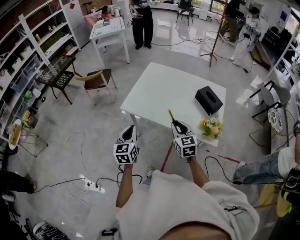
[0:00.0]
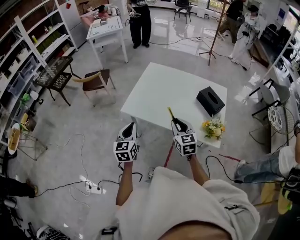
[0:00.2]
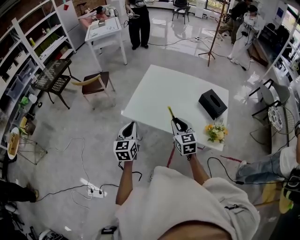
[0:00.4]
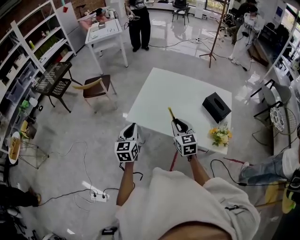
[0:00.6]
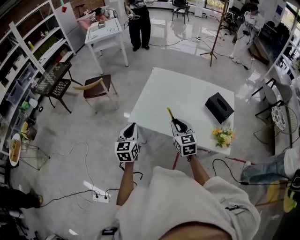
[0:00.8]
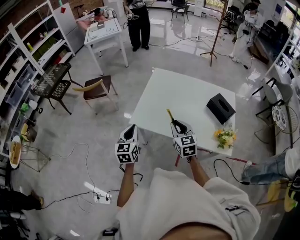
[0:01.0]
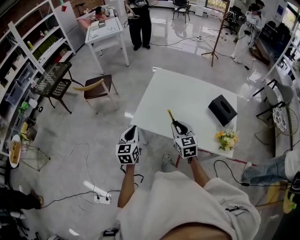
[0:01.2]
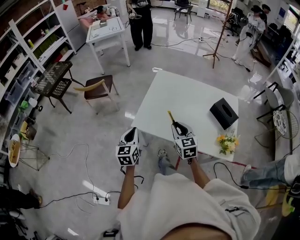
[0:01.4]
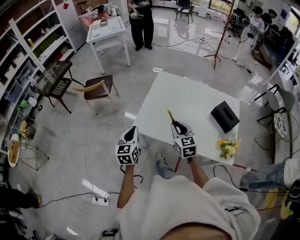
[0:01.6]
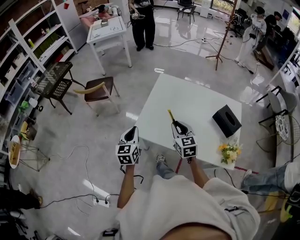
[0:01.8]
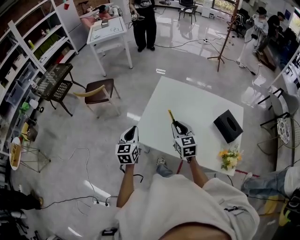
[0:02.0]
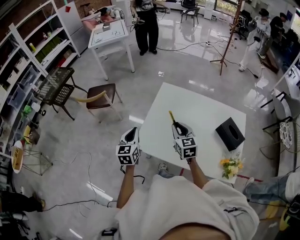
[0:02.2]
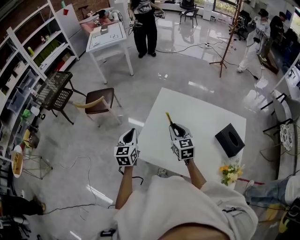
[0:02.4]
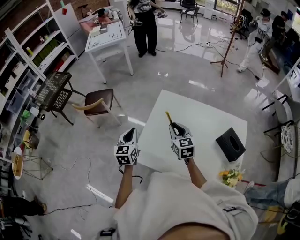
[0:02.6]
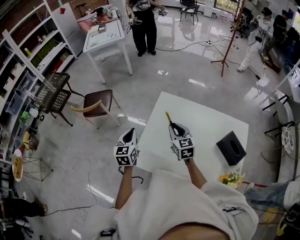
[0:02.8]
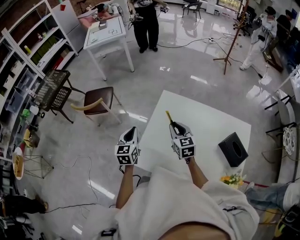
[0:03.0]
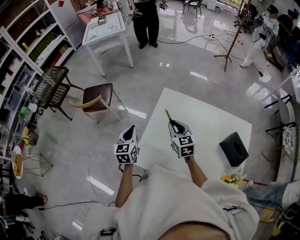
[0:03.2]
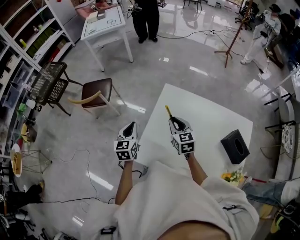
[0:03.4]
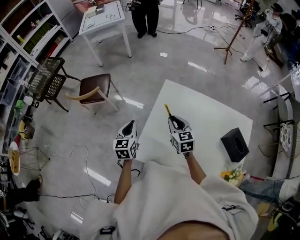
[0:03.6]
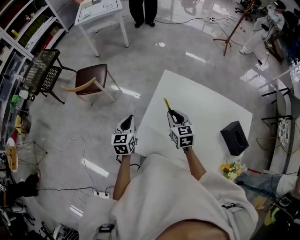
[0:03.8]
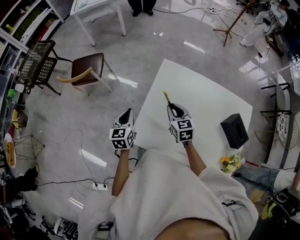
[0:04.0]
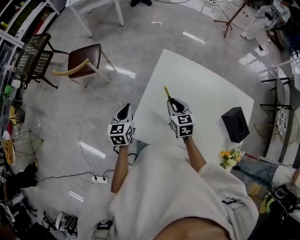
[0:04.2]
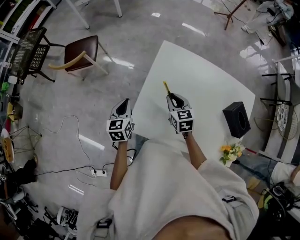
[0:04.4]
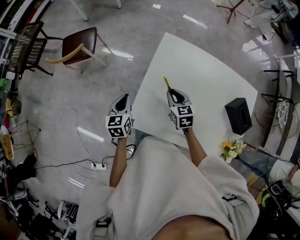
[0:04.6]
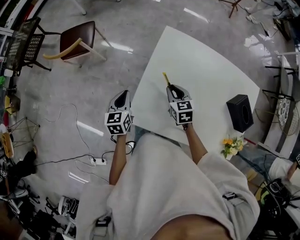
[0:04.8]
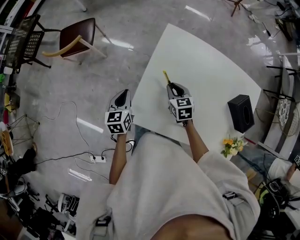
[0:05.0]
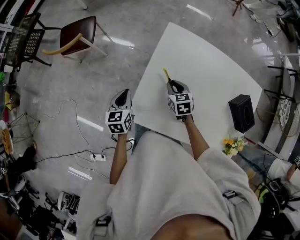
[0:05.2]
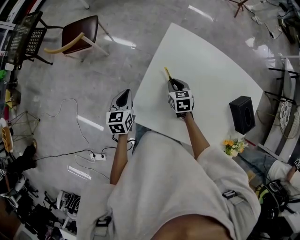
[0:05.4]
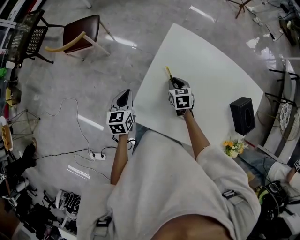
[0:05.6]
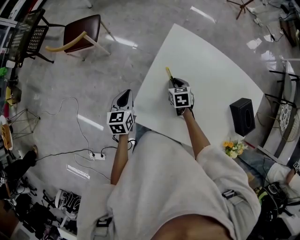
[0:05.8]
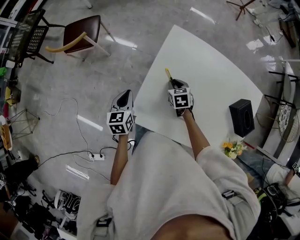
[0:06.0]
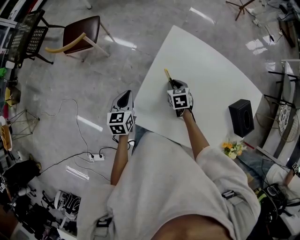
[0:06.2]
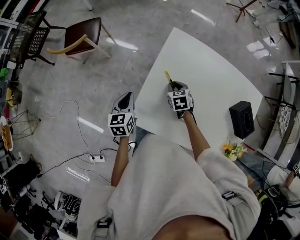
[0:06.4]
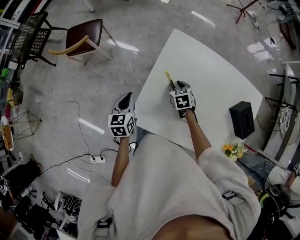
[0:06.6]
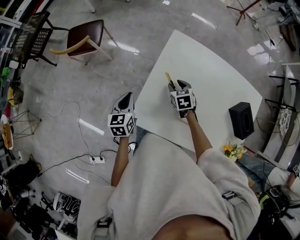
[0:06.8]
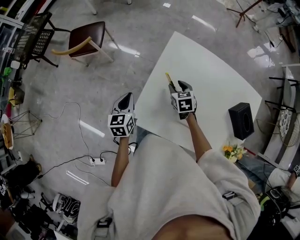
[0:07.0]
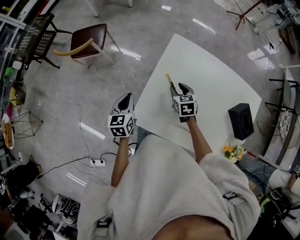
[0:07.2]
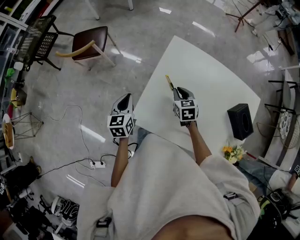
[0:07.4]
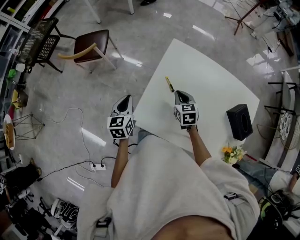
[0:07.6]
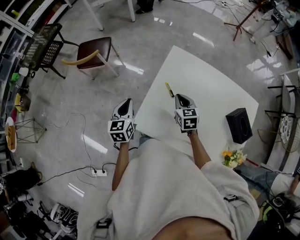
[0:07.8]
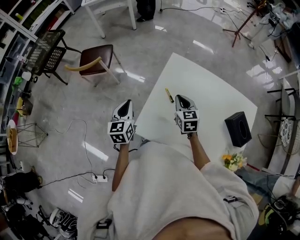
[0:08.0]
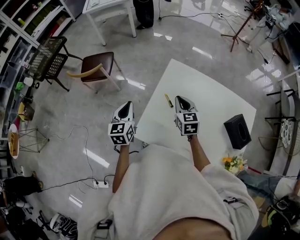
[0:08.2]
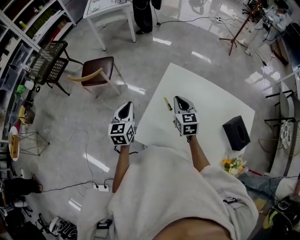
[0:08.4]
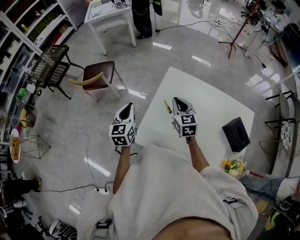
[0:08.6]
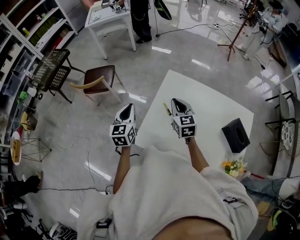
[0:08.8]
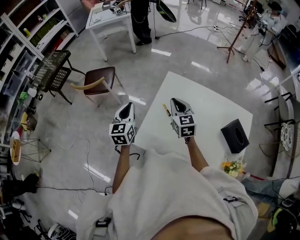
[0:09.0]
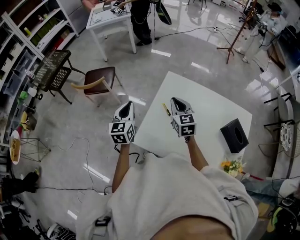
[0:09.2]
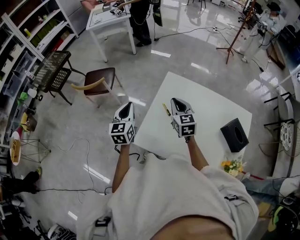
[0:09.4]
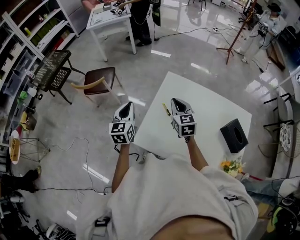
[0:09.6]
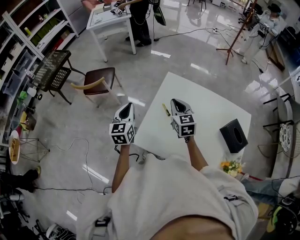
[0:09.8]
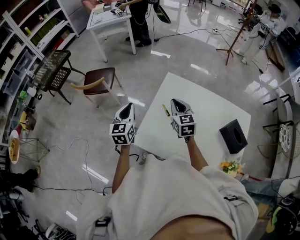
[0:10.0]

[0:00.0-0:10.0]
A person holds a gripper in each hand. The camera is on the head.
0.0 to 1.4 s: Both grippers travel together forward and to the left, approximately 15 cm.
1.4 to 2.8 s: The grippers both shift forward by roughly 25 cm.
2.8 to 4.2 s: Both grippers travel together downward, about 10 cm.
4.2 to 5.8 s: The left gripper ends up about 5 cm from where it was; the right gripper goes roughly 10 cm downward, and changes its angle by roughly 20 degrees.
5.8 to 7.2 s: The right gripper shifts roughly 5 cm upward, and opens its fingers.
7.2 to 8.6 s: Both grippers move upward, some 15 cm. The right gripper rotates about 20 degrees, and closes up.
8.6 to 10.0 s: There are only small adjustments of the grippers.

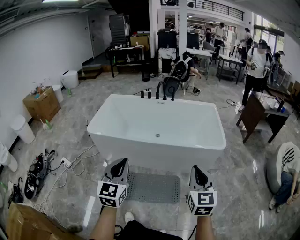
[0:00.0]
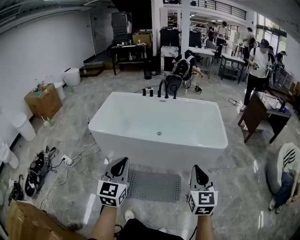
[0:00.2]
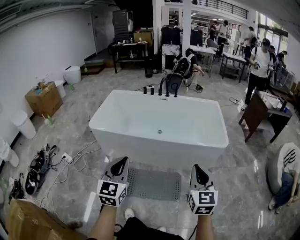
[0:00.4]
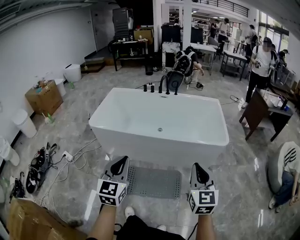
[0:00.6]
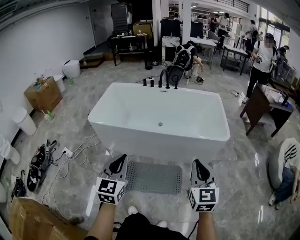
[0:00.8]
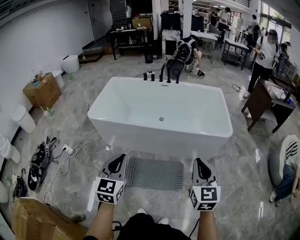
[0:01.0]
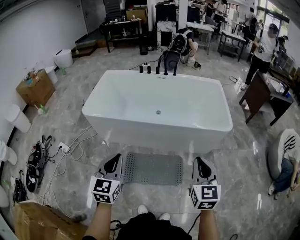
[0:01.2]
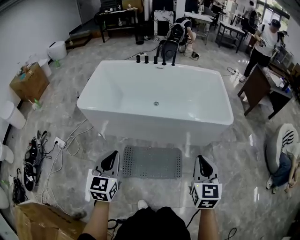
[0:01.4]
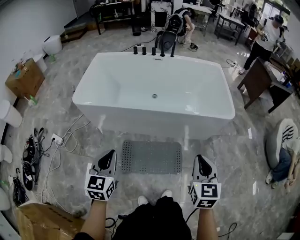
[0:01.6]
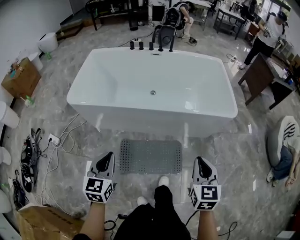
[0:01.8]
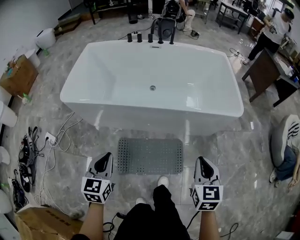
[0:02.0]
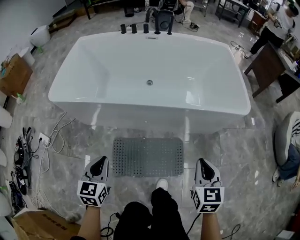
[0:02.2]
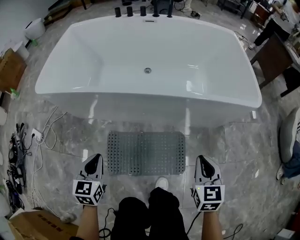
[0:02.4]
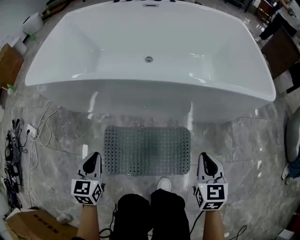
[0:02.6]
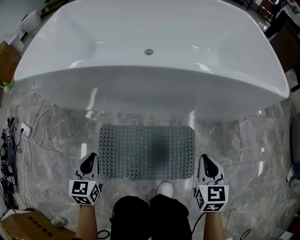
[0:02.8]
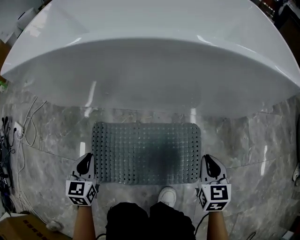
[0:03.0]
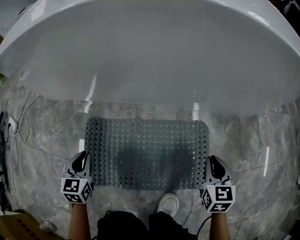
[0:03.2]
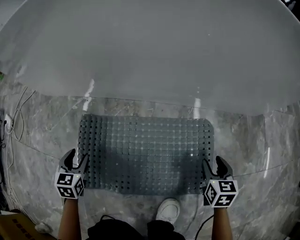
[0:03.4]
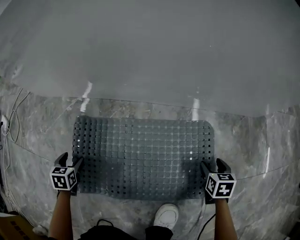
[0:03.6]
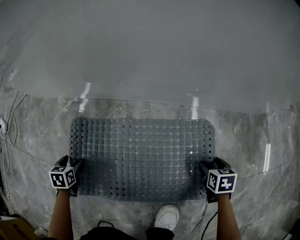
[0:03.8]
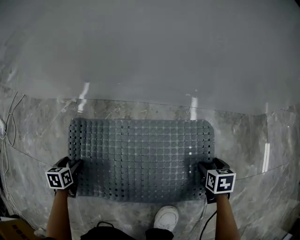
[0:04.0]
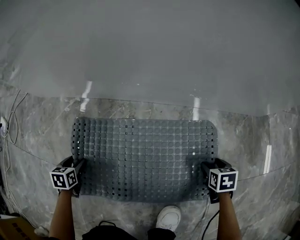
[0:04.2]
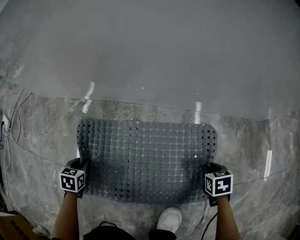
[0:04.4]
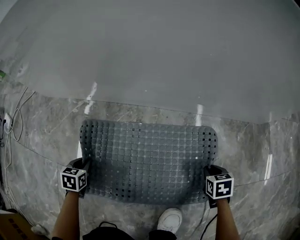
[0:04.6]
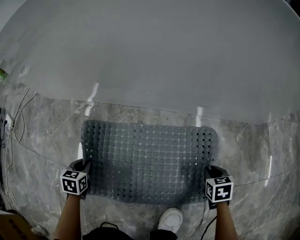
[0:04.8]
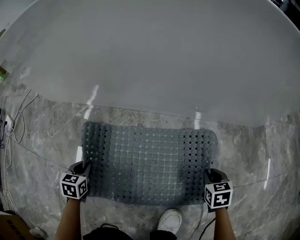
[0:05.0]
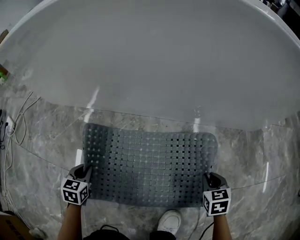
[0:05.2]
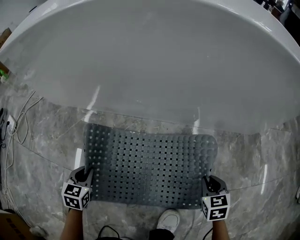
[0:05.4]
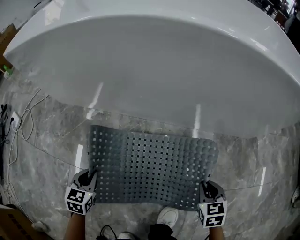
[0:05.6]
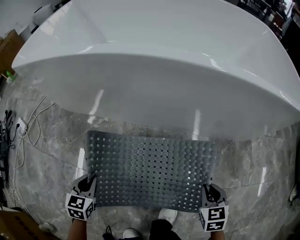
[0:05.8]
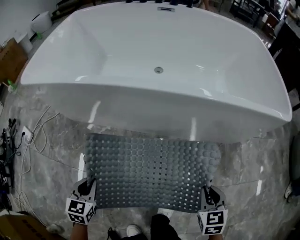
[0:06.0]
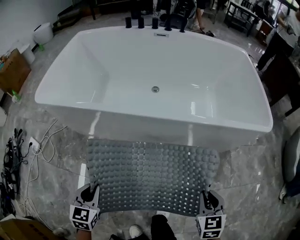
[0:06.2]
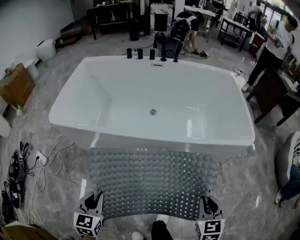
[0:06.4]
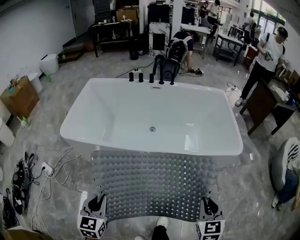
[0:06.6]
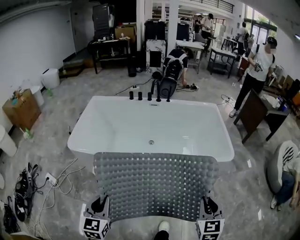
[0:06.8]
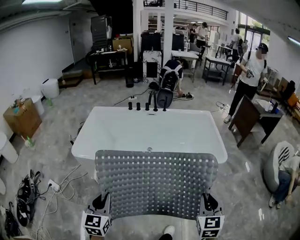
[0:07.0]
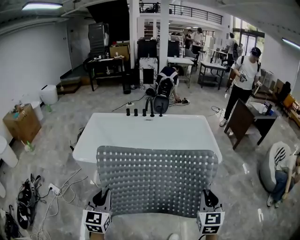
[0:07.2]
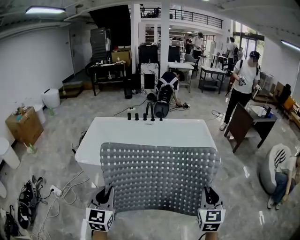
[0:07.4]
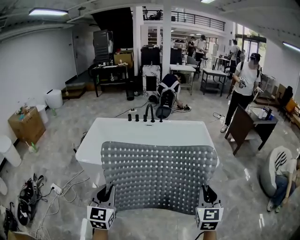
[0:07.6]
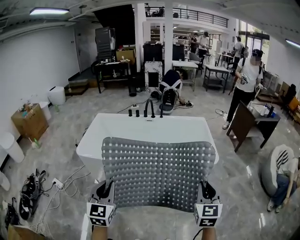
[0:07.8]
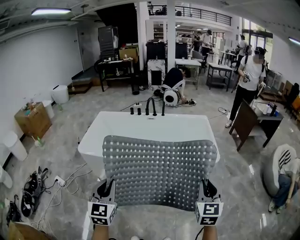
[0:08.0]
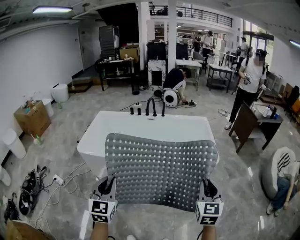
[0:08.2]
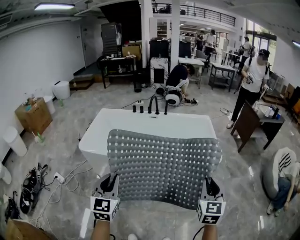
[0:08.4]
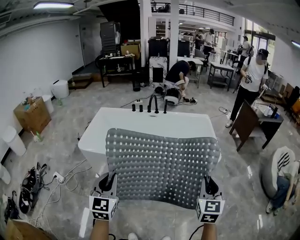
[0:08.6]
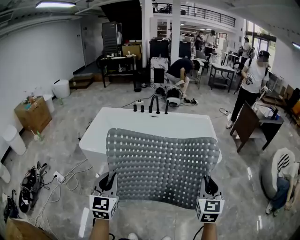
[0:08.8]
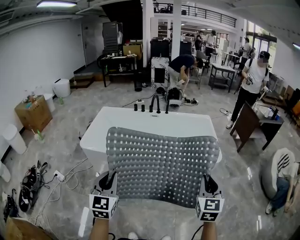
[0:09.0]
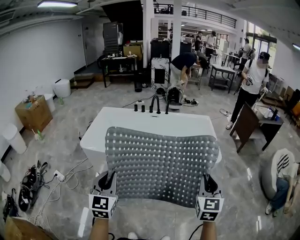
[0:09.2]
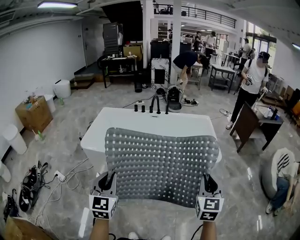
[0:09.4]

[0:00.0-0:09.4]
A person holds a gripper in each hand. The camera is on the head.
0.0 to 1.6 s: The left gripper moves downward and to the left, about 20 cm, while the right gripper shifts some 15 cm downward and forward.
1.6 to 3.2 s: The two grippers go some 70 cm downward. The left gripper turns by approximately 20 degrees.
3.2 to 4.8 s: Both grippers move downward, approximately 15 cm. The right gripper turns by about 30 degrees, and opens, then closes once more, while the left gripper rotates some 20 degrees, and opens and closes again.
4.8 to 6.2 s: Both grippers travel together upward, some 50 cm. The left gripper rotates some 20 degrees; the right gripper rotates some 30 degrees.
6.2 to 7.8 s: The grippers both shift upward by approximately 50 cm. The right gripper tips its fingers upward by about 30 degrees, while the left gripper angles its fingers upward, by about 30 degrees.
7.8 to 9.4 s: There are only small adjustments of the grippers.

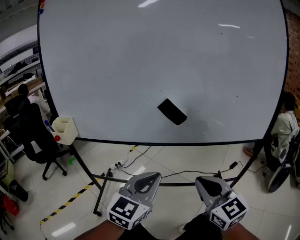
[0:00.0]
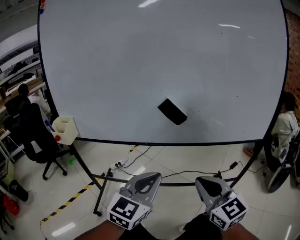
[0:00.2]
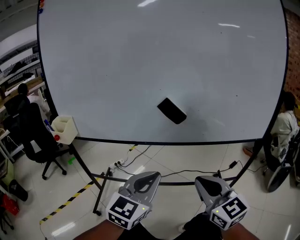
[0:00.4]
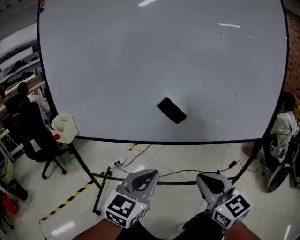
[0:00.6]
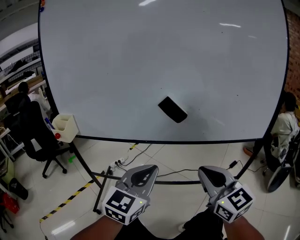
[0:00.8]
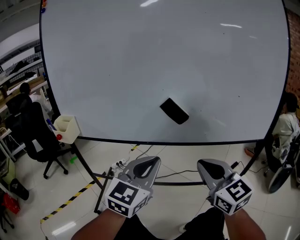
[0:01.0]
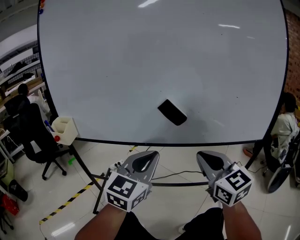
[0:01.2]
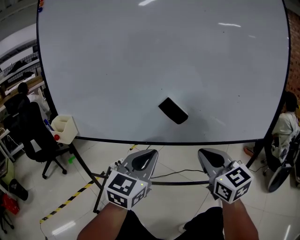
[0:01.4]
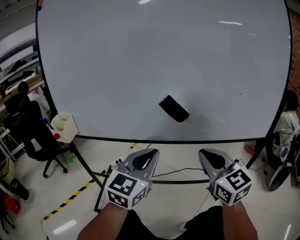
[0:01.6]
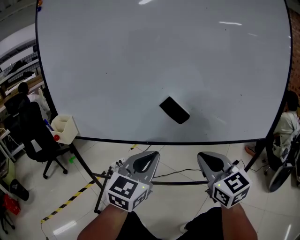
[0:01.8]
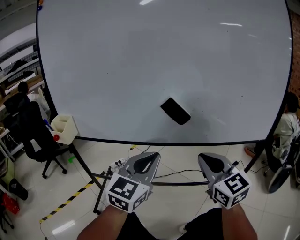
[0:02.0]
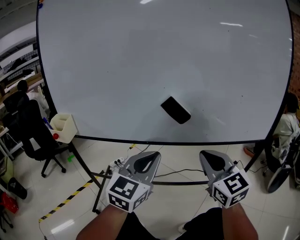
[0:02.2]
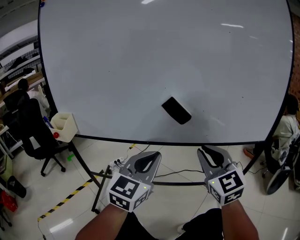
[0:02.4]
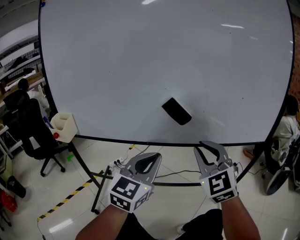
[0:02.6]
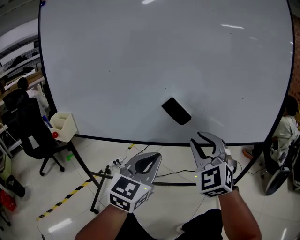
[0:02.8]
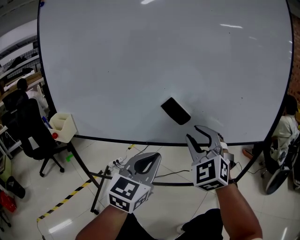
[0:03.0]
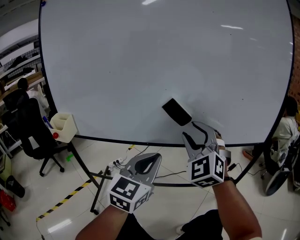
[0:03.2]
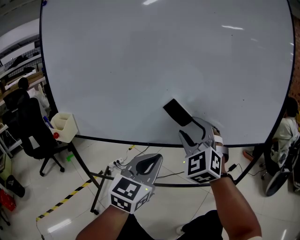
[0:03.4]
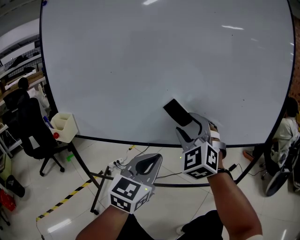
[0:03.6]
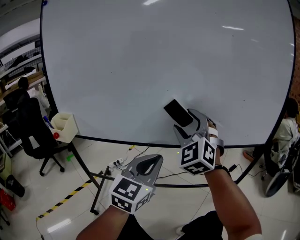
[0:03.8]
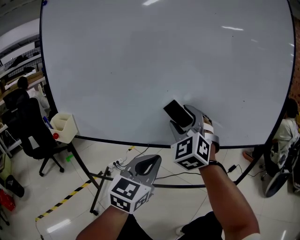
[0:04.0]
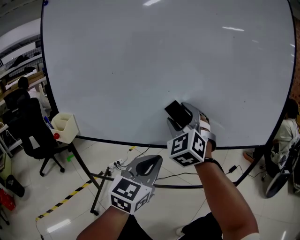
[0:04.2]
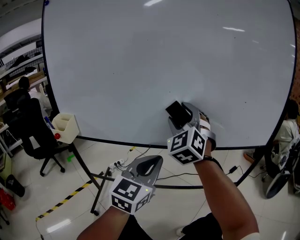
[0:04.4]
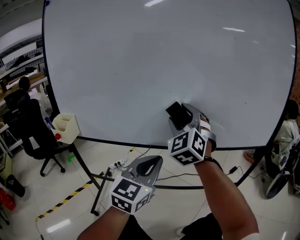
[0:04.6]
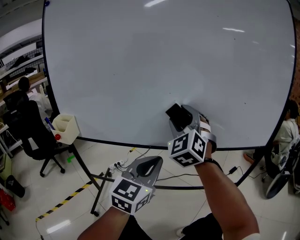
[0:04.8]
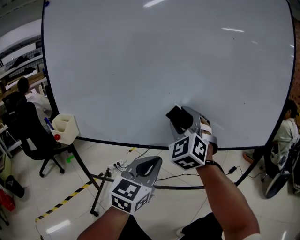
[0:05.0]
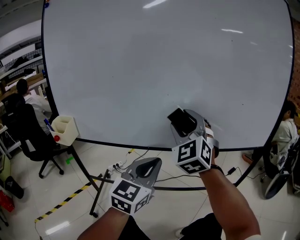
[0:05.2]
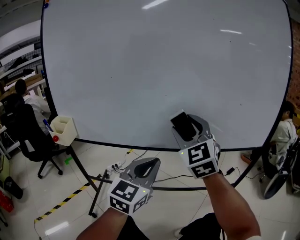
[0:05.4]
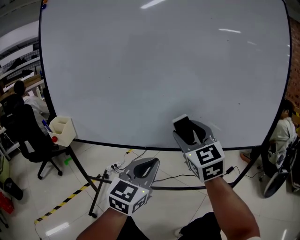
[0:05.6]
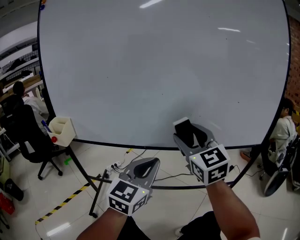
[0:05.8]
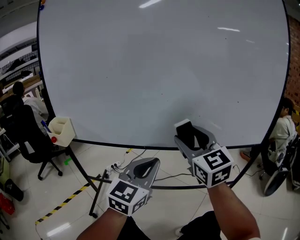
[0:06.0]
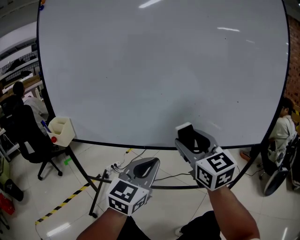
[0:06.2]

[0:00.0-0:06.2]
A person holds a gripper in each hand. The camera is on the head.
0.0 to 1.6 s: Both grippers travel together forward, about 5 cm.
1.6 to 3.2 s: The right gripper moves forward and to the left, about 10 cm, rolls counterclockwise, seen from behind, by approximately 40 degrees, and opens.
3.2 to 4.6 s: The right gripper goes some 10 cm to the left and forward, and opens its fingers.
4.6 to 6.2 s: The right gripper heads backward and to the right, covering about 10 cm, and rolls clockwise, seen from behind, by some 40 degrees.
